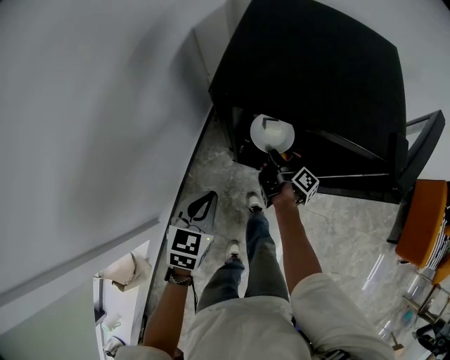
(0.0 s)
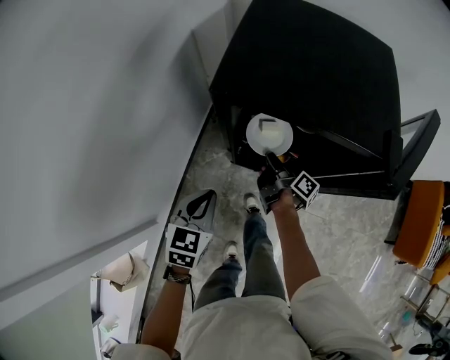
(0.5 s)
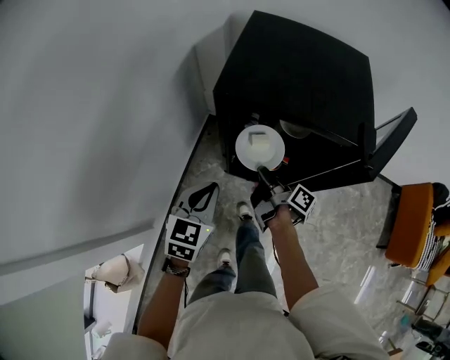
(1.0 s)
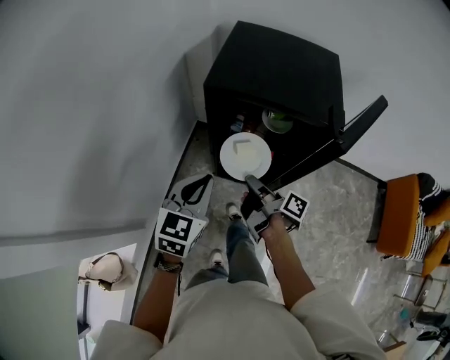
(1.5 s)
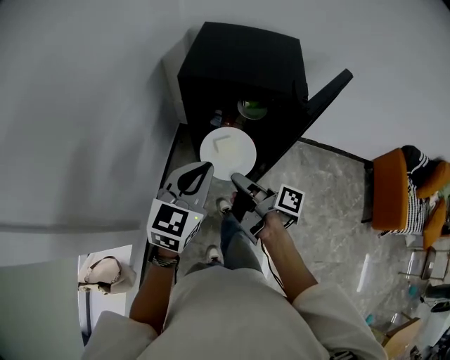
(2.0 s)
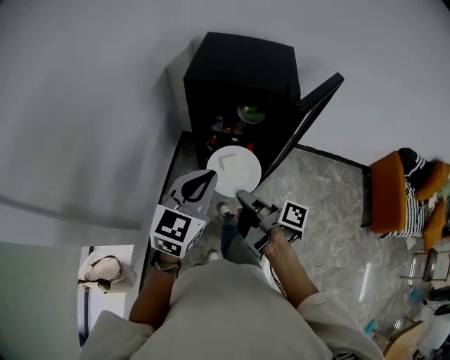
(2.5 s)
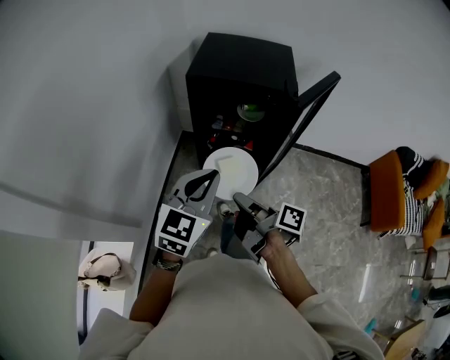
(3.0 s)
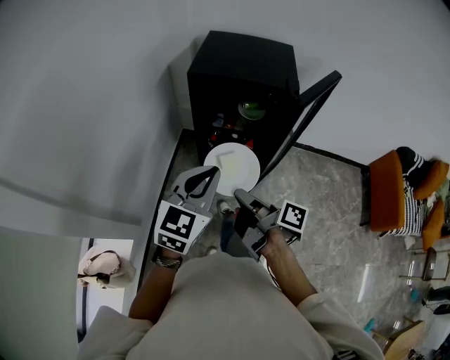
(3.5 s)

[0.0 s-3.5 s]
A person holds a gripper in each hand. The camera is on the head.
0.0 to 2.0 s: The right gripper heads upward and backward, covering roughly 35 cm; the left gripper goes about 25 cm upward, backward and to the right, and rotates about 30 degrees.
2.0 to 3.5 s: Both grippers travel together backward, some 10 cm.

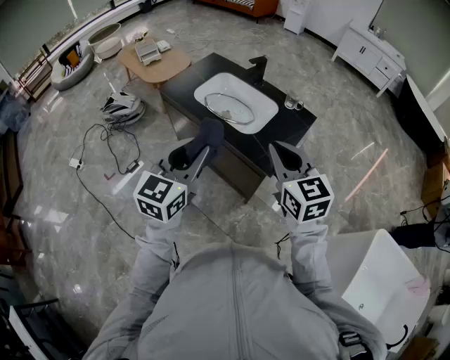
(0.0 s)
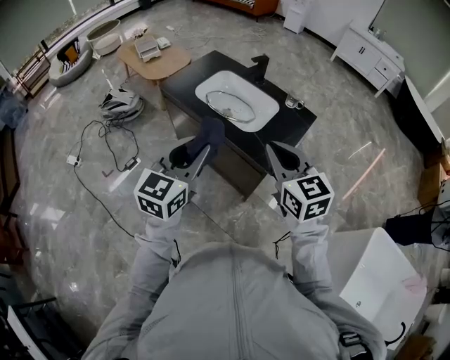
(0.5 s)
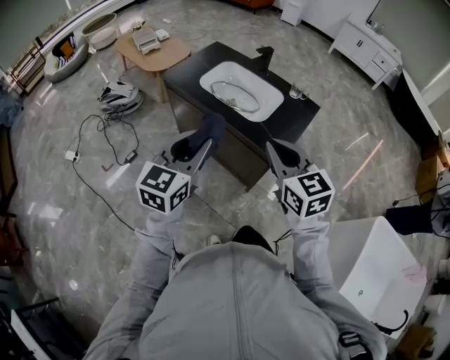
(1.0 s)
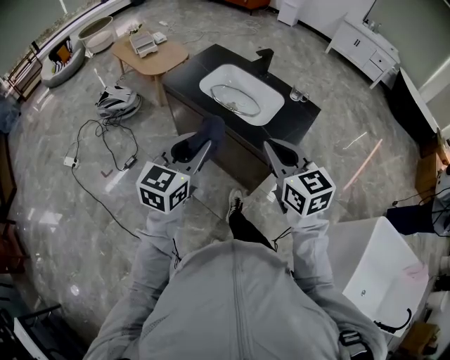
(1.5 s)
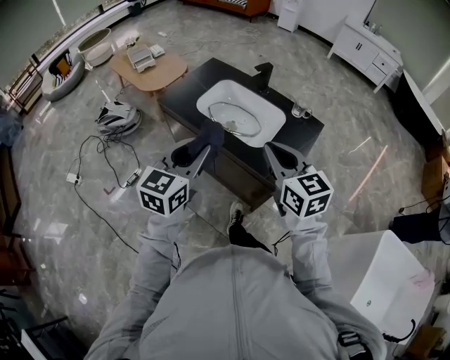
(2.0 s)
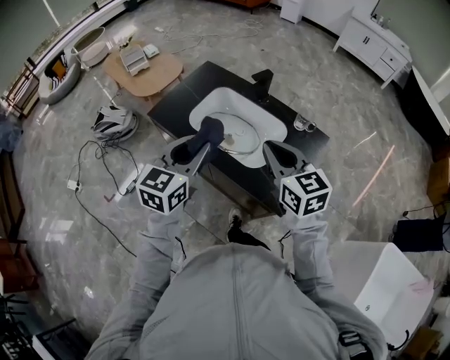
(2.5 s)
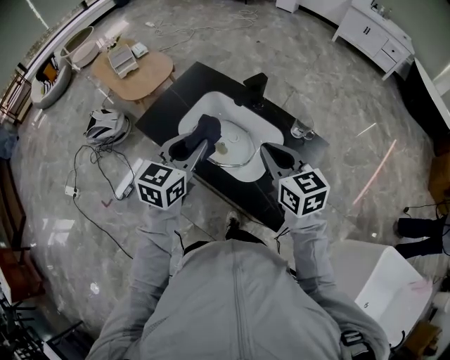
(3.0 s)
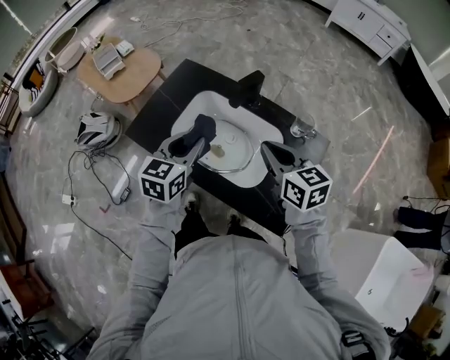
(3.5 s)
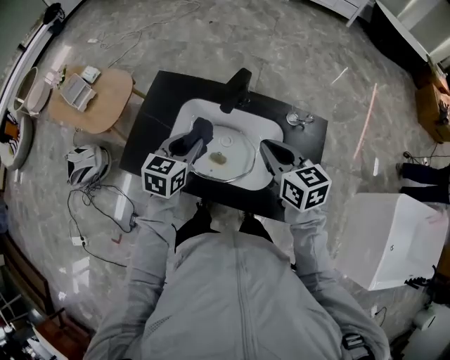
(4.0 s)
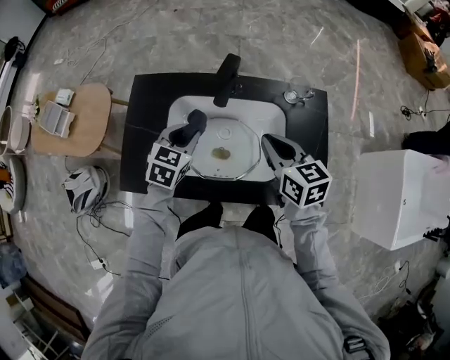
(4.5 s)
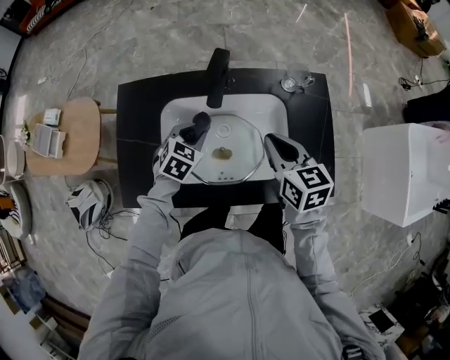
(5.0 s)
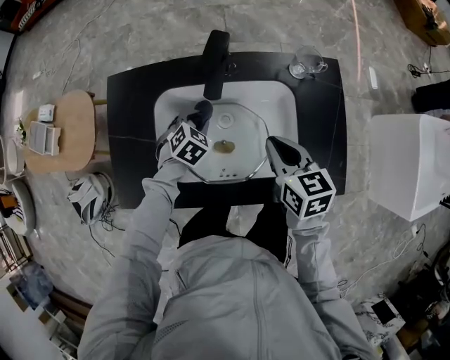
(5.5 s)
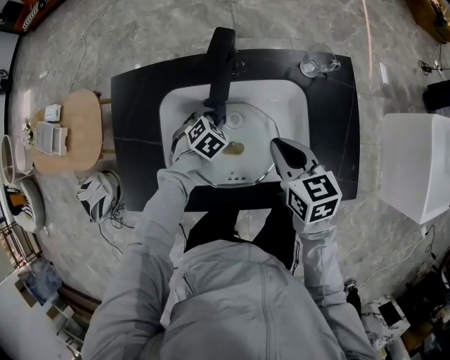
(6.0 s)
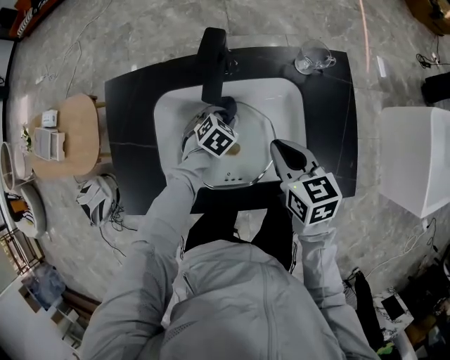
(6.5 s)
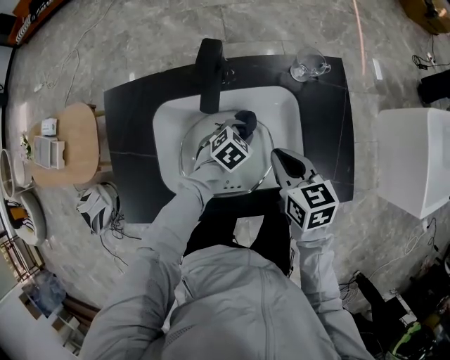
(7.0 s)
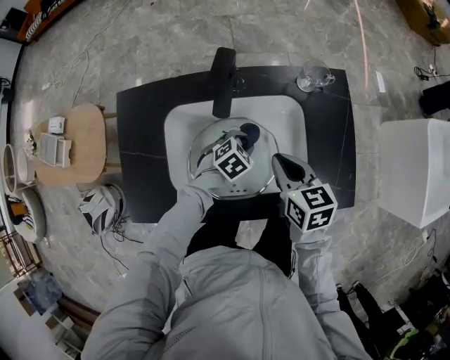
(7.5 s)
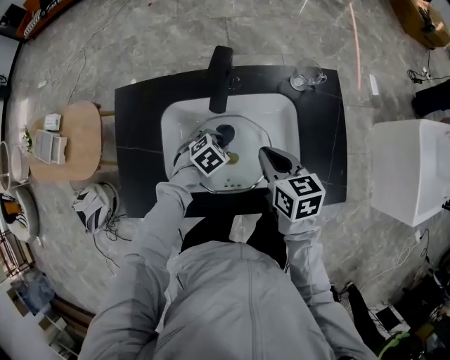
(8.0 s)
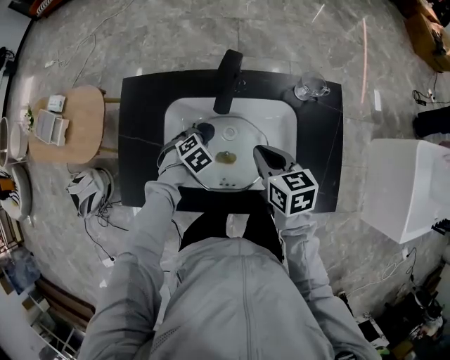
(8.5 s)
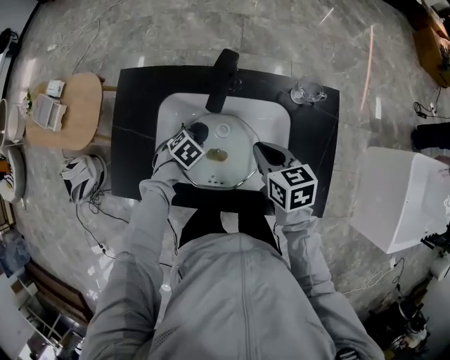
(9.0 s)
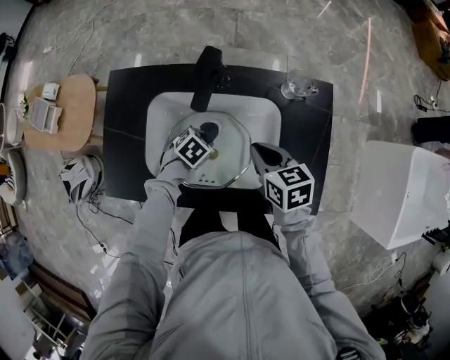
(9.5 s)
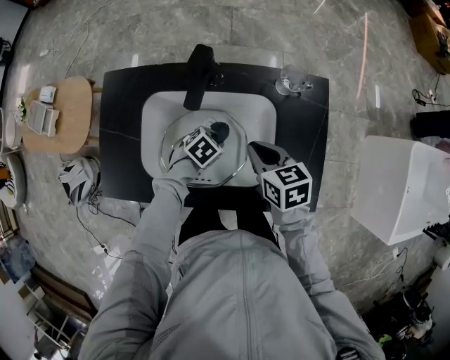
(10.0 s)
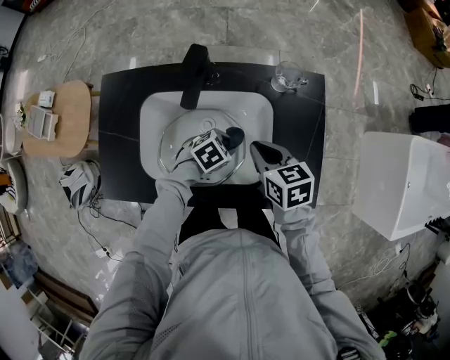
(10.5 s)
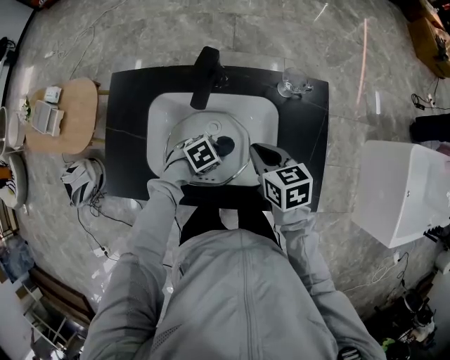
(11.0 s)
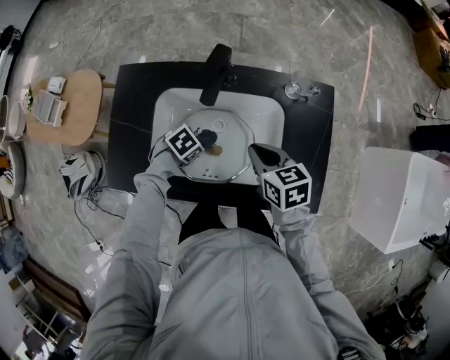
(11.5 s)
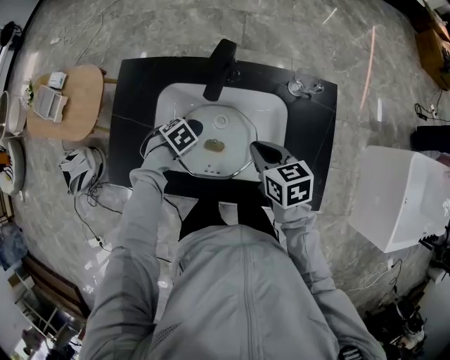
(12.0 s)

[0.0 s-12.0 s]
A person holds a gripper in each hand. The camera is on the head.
0.0 to 2.0 s: The grippers both shift forward and to the left by some 10 cm.
2.0 to 4.0 s: The right gripper heads forward, covering approximately 30 cm, and turns by about 20 degrees. Meanwhile the left gripper moves forward and downward, approximately 40 cm, and changes its angle by some 30 degrees.
4.0 to 6.0 s: The left gripper is displaced downward by some 30 cm, and points its fingers about 40 degrees further downward, while the right gripper goes roughly 15 cm downward, and swivels approximately 30 degrees.
8.0 to 10.0 s: The left gripper shifts by roughly 5 cm. The right gripper moves approximately 5 cm.
10.0 to 12.0 s: The left gripper shifts by some 15 cm.

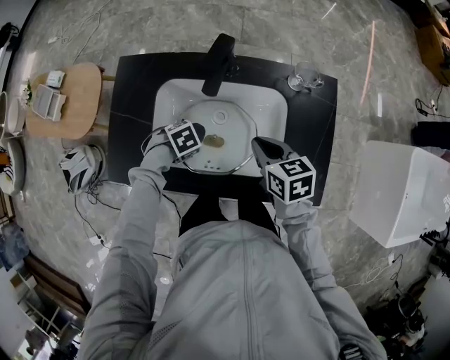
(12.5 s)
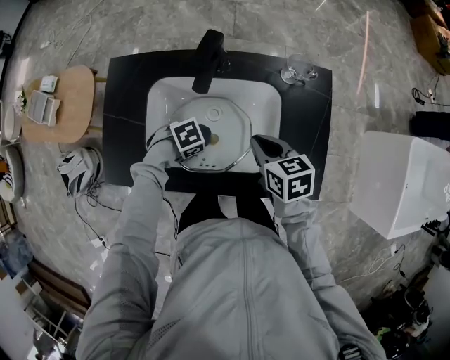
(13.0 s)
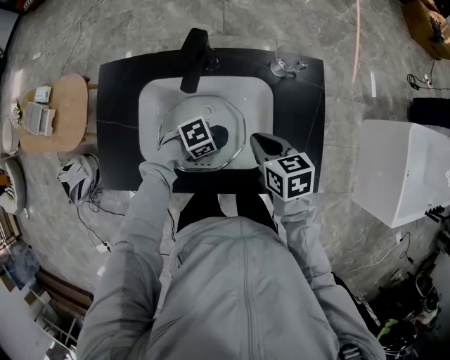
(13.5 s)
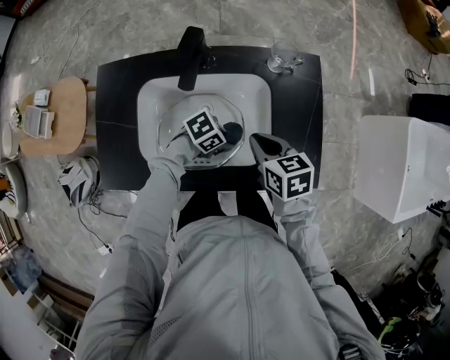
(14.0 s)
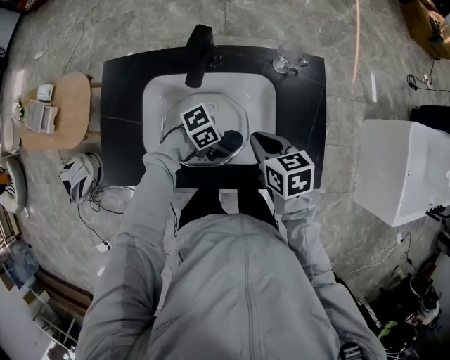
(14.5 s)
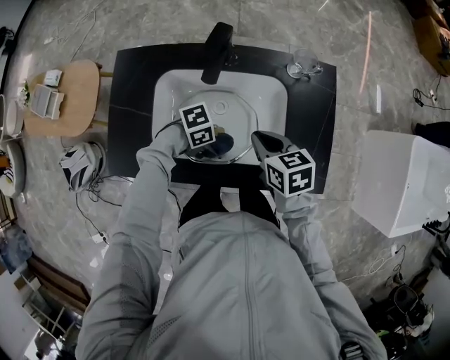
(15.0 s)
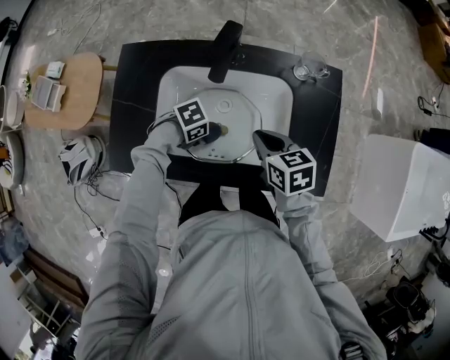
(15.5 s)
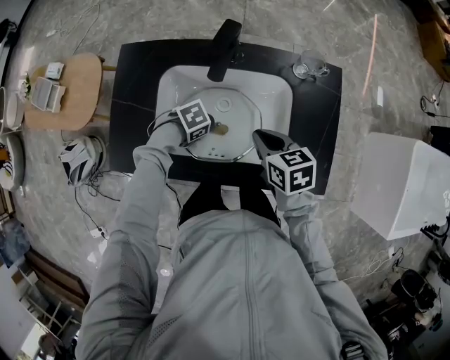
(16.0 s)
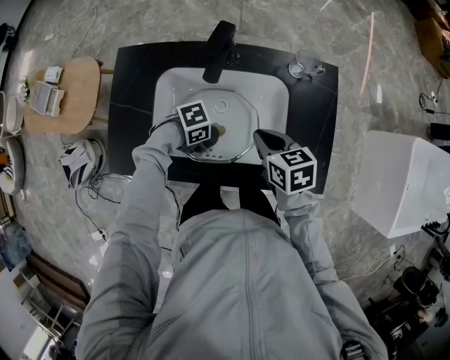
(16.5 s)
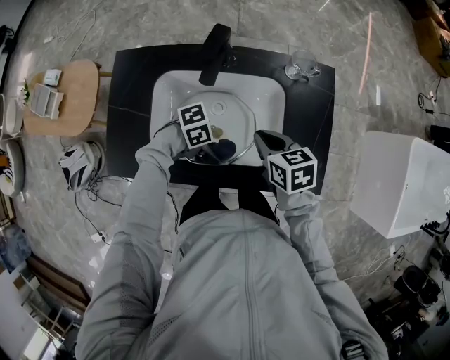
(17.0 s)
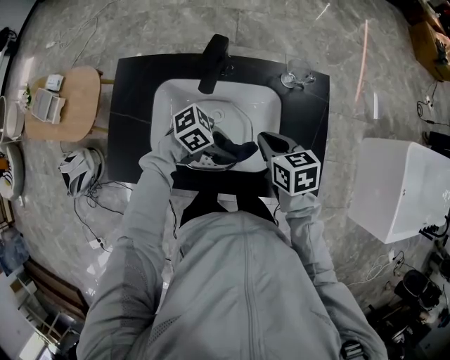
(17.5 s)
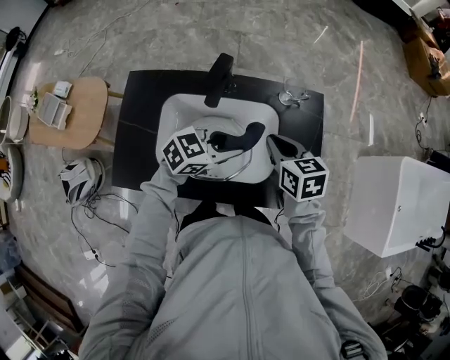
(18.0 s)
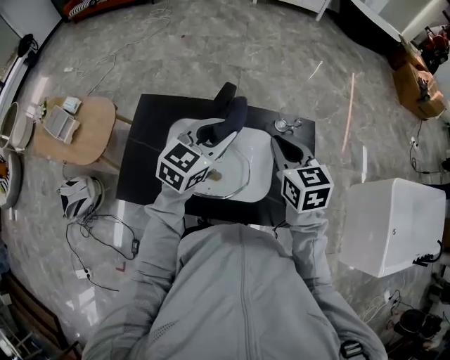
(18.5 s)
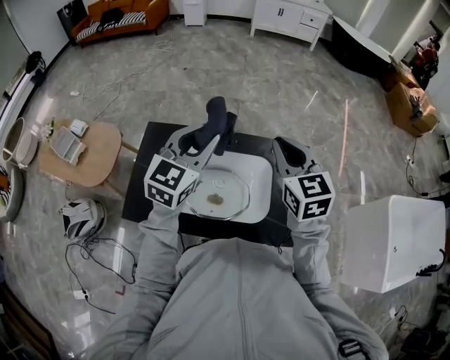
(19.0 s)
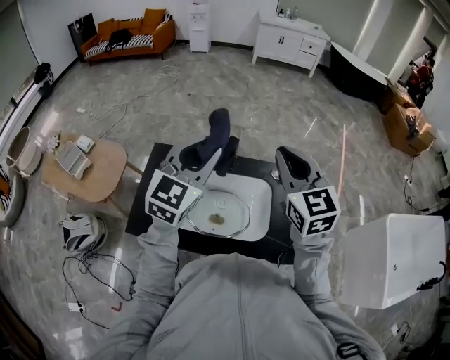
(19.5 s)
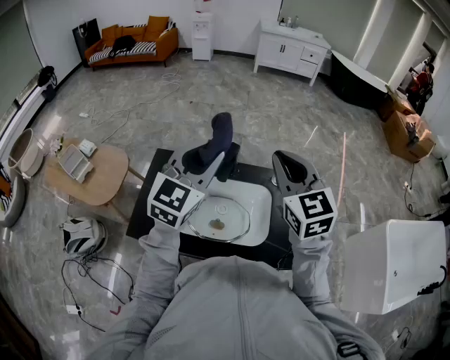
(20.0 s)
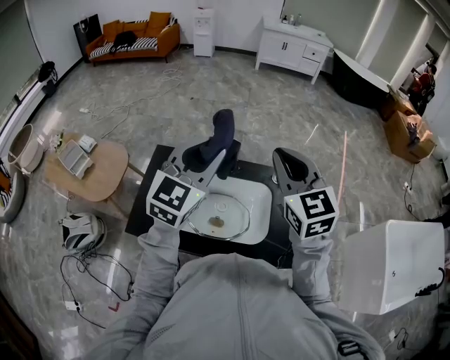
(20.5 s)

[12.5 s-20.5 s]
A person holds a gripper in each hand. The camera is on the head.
12.5 to 14.5 s: The left gripper ends up roughly 15 cm from where it was, and angles its fingers upward, by approximately 40 degrees.
14.5 to 16.5 s: The left gripper changes place by some 10 cm, and changes its angle by roughly 20 degrees.
16.5 to 18.5 s: The left gripper shifts roughly 30 cm upward, and tips its fingers upward by some 40 degrees; the right gripper heads upward, covering about 20 cm, and rotates some 30 degrees.
18.5 to 20.5 s: Both grippers travel together upward, roughly 15 cm. The left gripper turns by about 20 degrees. Meanwhile the right gripper swivels some 30 degrees.

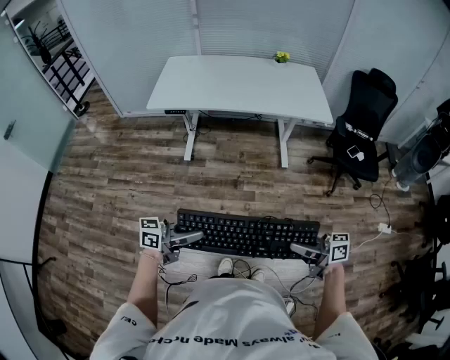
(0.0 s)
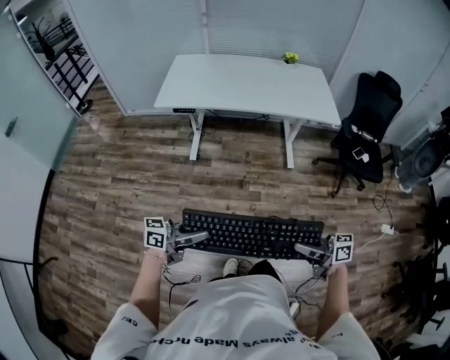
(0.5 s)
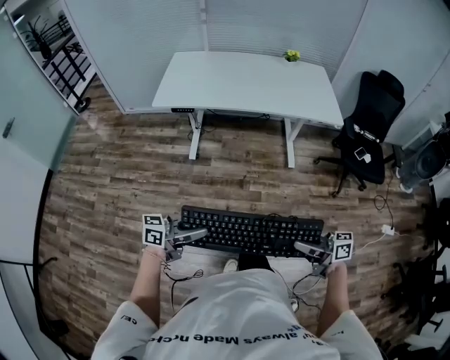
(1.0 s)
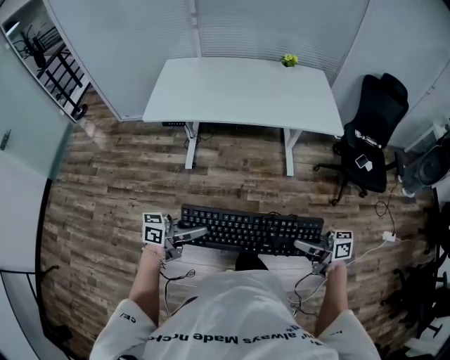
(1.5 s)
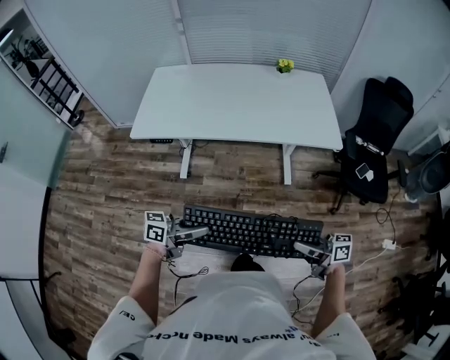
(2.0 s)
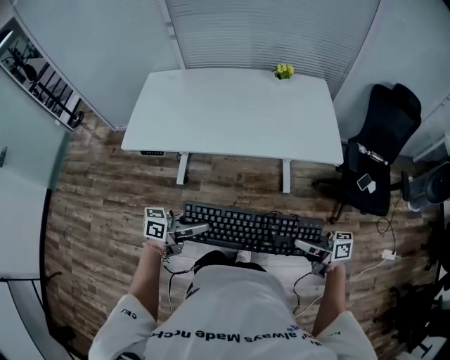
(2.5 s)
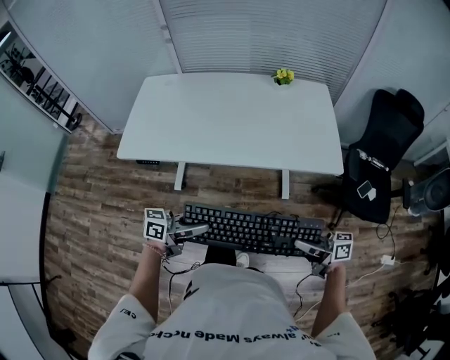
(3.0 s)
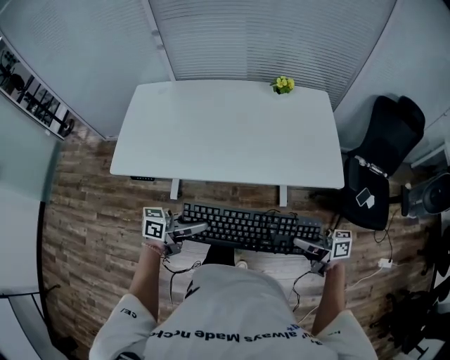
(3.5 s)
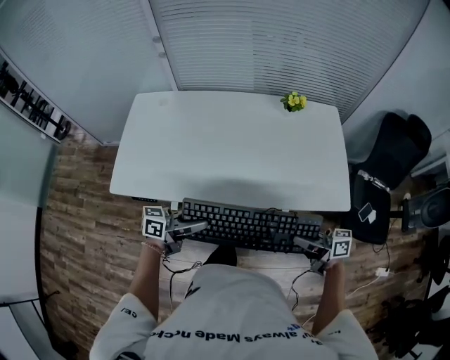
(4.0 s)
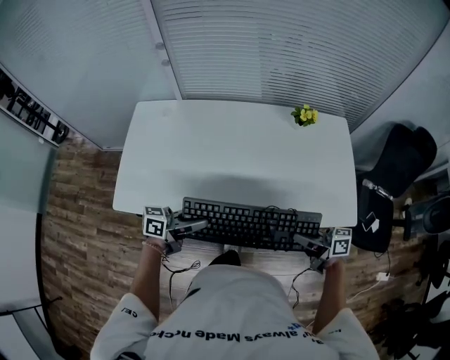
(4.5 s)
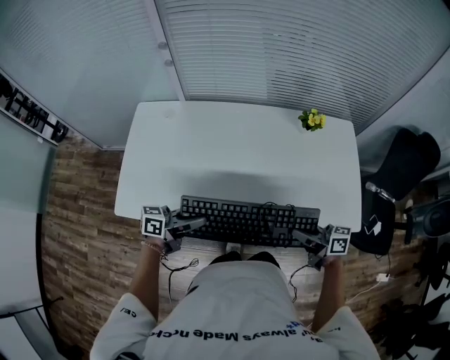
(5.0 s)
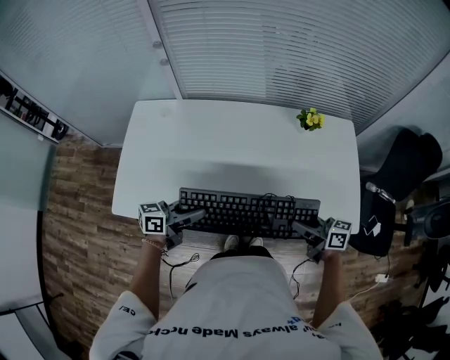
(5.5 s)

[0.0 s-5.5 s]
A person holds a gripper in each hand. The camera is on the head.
0.0 to 2.0 s: The right gripper moves some 25 cm, while the left gripper moves about 25 cm.
2.0 to 3.5 s: The right gripper ends up about 25 cm from where it was. Meanwhile the left gripper shifts by about 25 cm.
3.5 to 5.5 s: The left gripper shifts by roughly 30 cm, while the right gripper moves roughly 30 cm.
